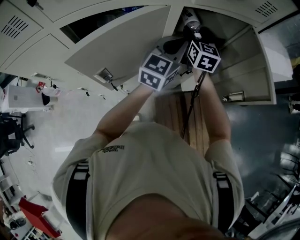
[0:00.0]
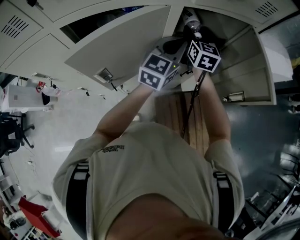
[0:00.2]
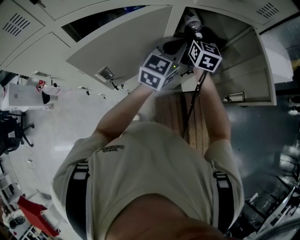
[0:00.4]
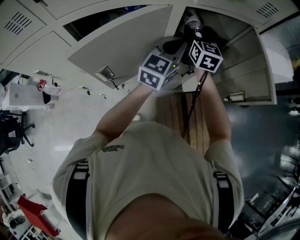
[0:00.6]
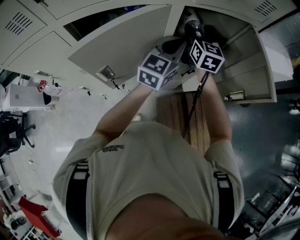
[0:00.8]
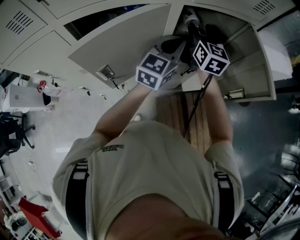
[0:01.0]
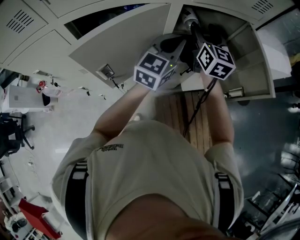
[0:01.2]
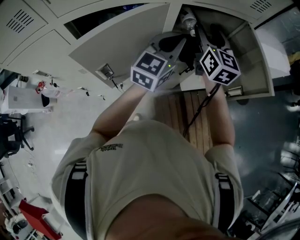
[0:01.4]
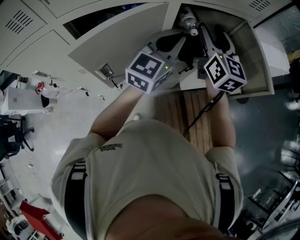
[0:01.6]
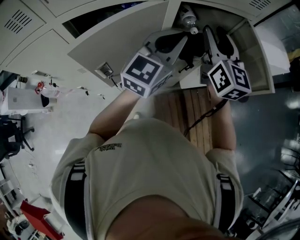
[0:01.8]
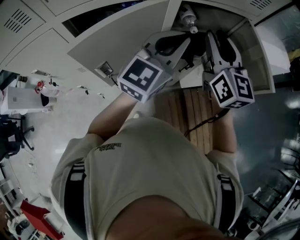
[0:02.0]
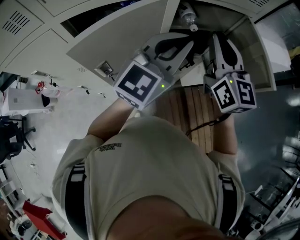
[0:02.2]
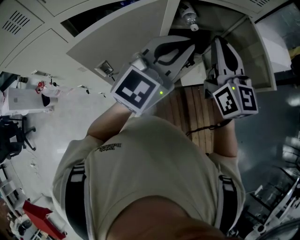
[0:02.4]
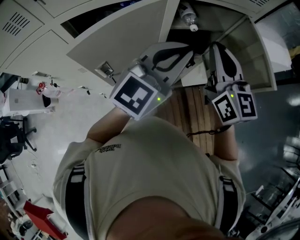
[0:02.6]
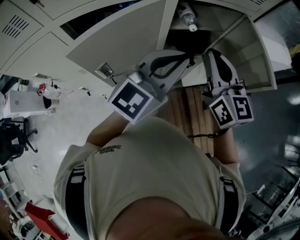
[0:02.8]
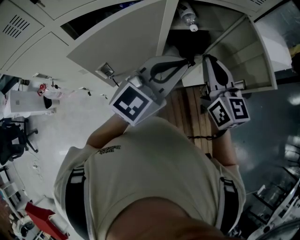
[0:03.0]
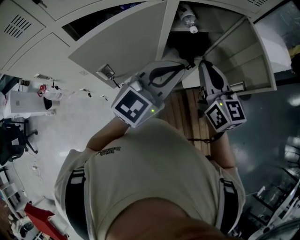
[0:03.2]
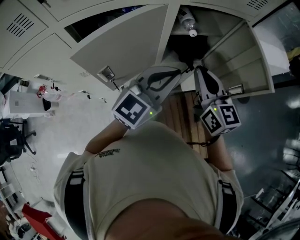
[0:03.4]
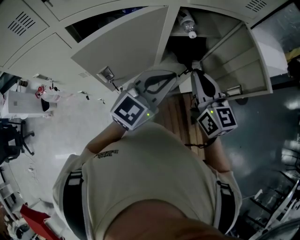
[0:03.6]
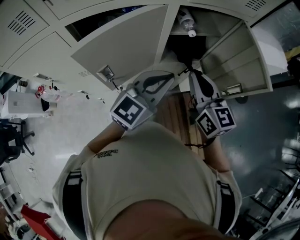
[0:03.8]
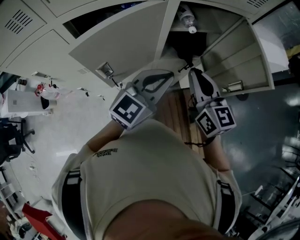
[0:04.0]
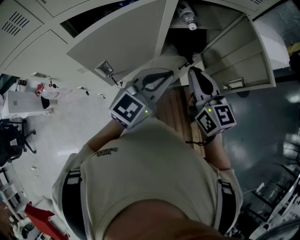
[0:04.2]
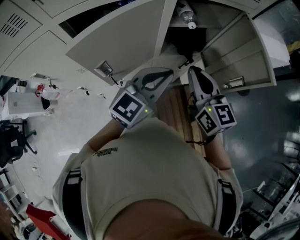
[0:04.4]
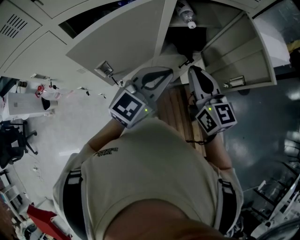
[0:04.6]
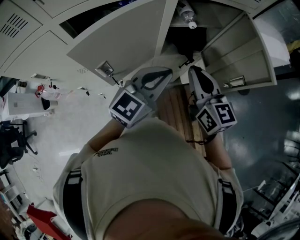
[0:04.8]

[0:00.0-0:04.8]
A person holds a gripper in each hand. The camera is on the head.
0:00.0 to 0:01.6: The left gripper shifts roughly 5 cm upward; the right gripper heads upward and backward, covering roughly 15 cm.
0:01.6 to 0:03.2: The right gripper heads backward and downward, covering roughly 15 cm, and closes its fingers. The left gripper heads backward, covering approximately 10 cm.
0:03.2 to 0:04.8: The left gripper moves downward, approximately 5 cm.

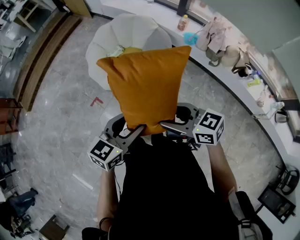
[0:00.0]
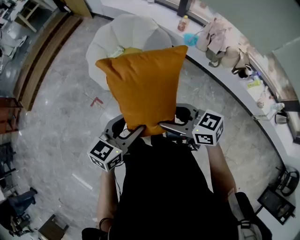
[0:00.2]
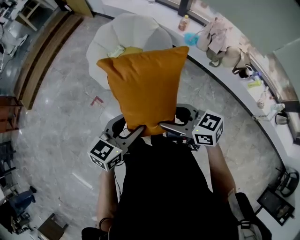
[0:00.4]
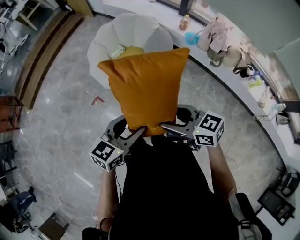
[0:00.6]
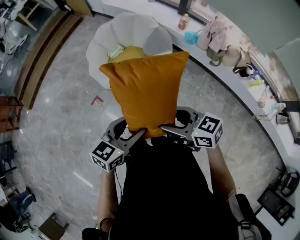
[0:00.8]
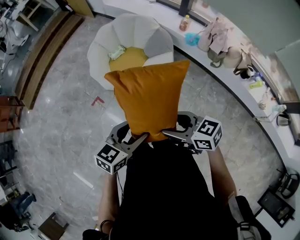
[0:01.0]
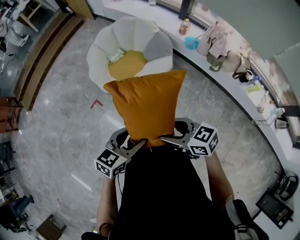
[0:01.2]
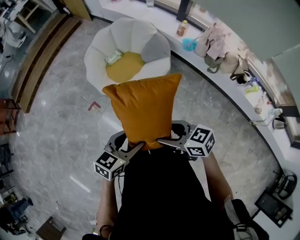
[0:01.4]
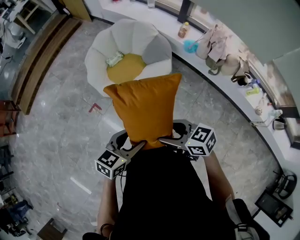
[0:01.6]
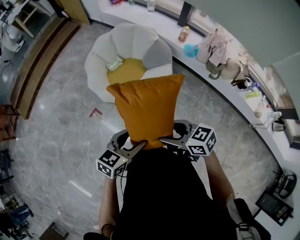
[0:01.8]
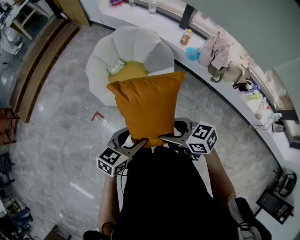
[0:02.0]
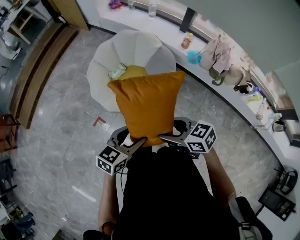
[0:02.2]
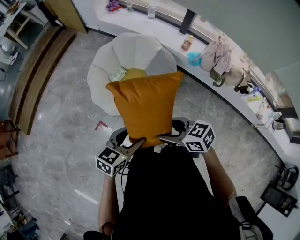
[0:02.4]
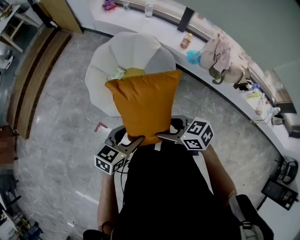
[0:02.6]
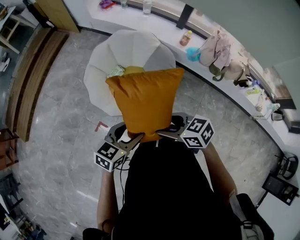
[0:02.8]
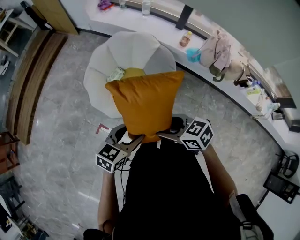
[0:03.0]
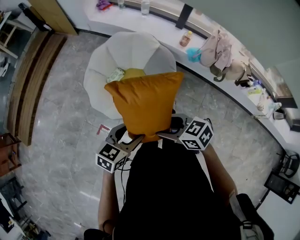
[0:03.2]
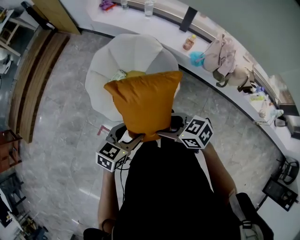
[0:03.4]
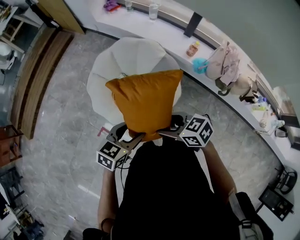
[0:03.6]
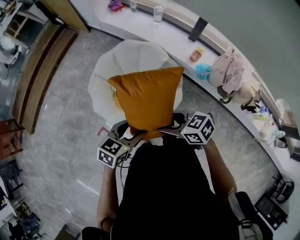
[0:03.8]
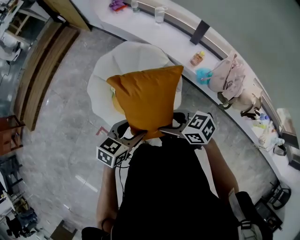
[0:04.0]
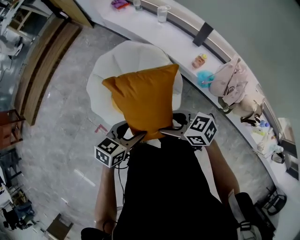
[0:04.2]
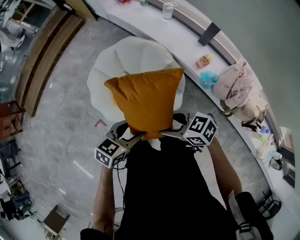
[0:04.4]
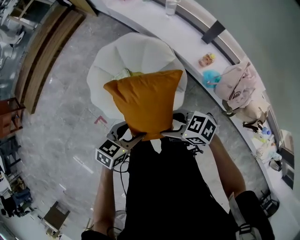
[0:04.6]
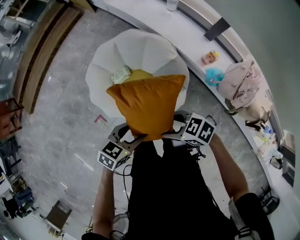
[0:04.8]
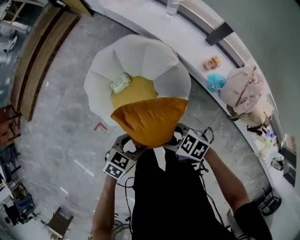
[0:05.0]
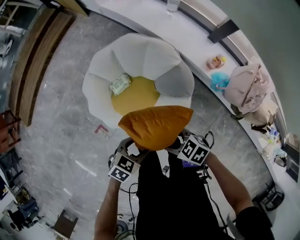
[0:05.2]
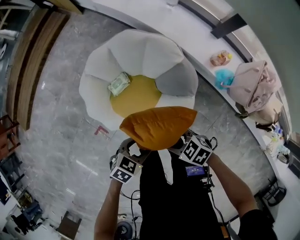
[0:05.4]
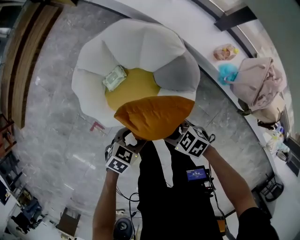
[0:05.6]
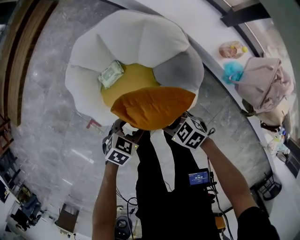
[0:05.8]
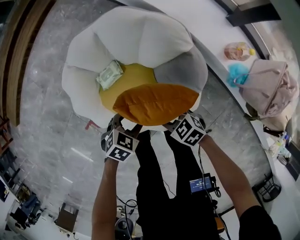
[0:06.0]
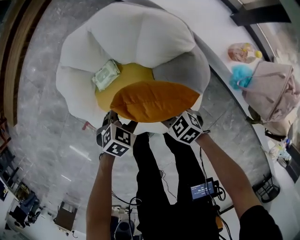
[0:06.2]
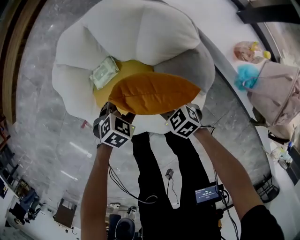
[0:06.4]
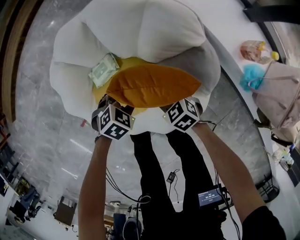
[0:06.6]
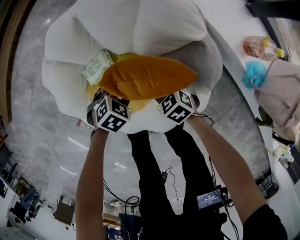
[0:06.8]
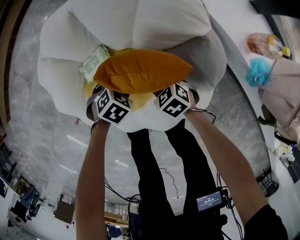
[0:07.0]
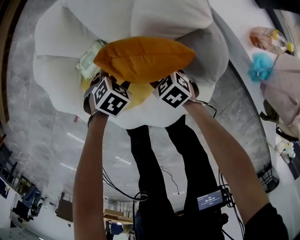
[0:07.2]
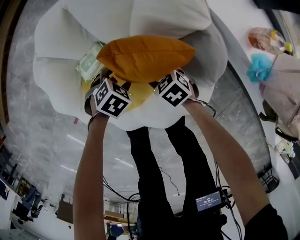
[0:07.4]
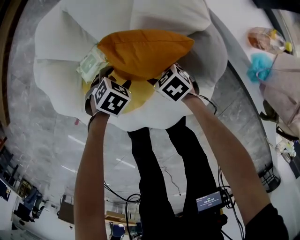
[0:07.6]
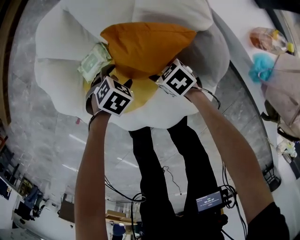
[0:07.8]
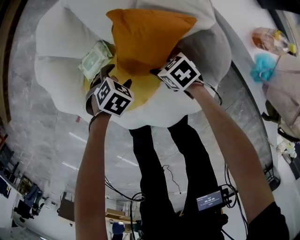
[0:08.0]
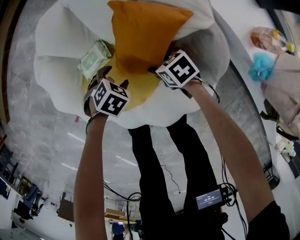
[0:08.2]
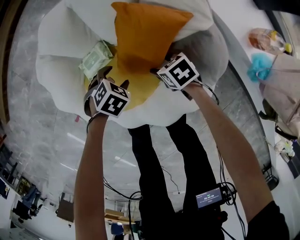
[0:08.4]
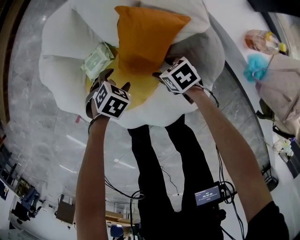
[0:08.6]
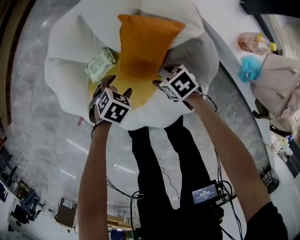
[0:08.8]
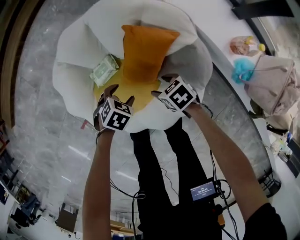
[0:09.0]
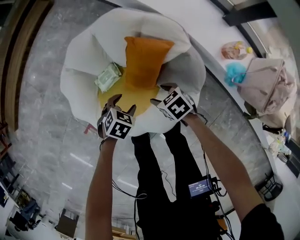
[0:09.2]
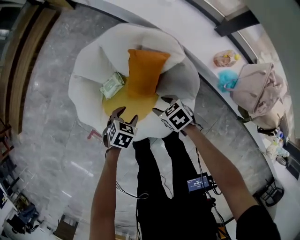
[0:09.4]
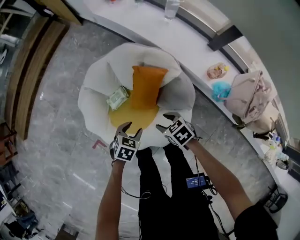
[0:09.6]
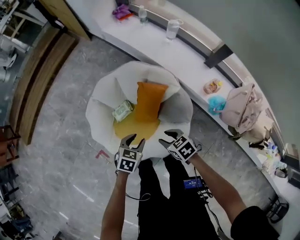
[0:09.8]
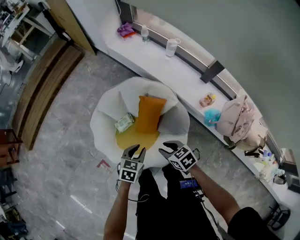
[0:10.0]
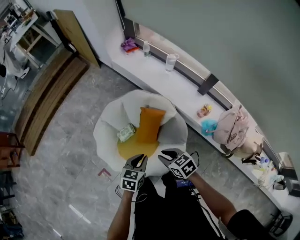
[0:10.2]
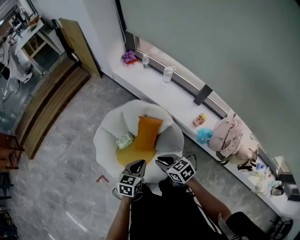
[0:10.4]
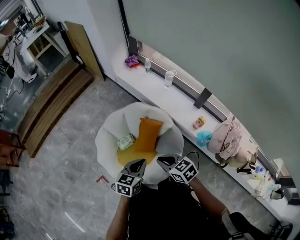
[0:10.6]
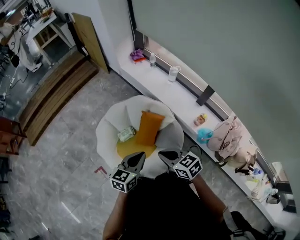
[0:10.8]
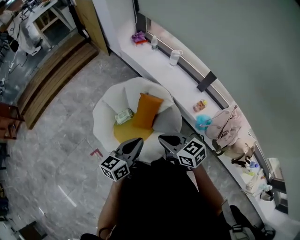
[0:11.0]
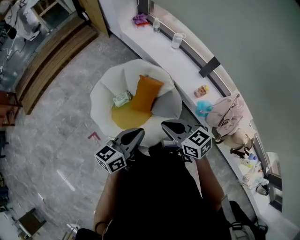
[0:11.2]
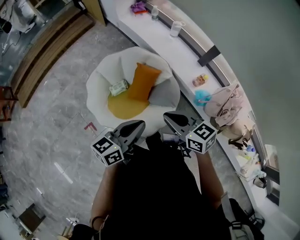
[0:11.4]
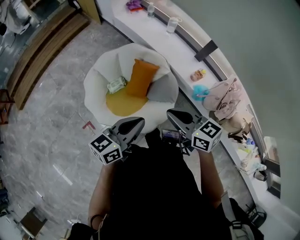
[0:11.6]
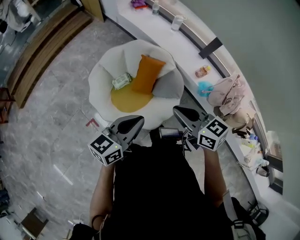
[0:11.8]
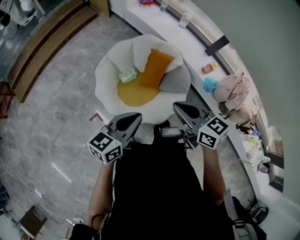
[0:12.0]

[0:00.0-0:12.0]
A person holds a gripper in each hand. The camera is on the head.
0:00.0 to 0:01.6: The grippers both shift downward by roughly 5 cm.
0:01.6 to 0:03.0: The left gripper changes place by approximately 25 cm. The right gripper moves approximately 25 cm.
0:03.0 to 0:04.4: The left gripper shifts by some 30 cm. Meanwhile the right gripper changes place by some 30 cm, and rotates some 20 degrees.
0:04.4 to 0:06.0: Both grippers move downward, roughly 35 cm. The left gripper changes its angle by roughly 30 degrees. Meanwhile the right gripper turns by roughly 20 degrees.
0:06.0 to 0:07.6: The two grippers go some 20 cm downward.
0:07.6 to 0:09.0: Both grippers travel together upward, roughly 10 cm.
0:09.0 to 0:10.4: The two grippers go some 40 cm upward. The right gripper changes its angle by approximately 30 degrees, and closes. Meanwhile the left gripper angles its fingers upward, by about 40 degrees, and closes its fingers.
0:10.4 to 0:12.0: The right gripper moves upward, backward and to the left, approximately 20 cm. The left gripper travels backward, upward and to the left by about 20 cm, and changes its angle by approximately 20 degrees.

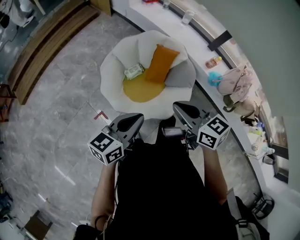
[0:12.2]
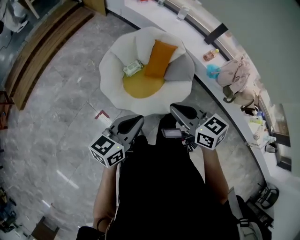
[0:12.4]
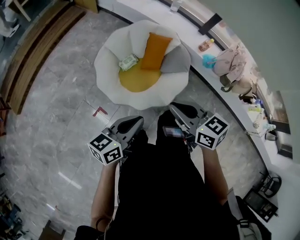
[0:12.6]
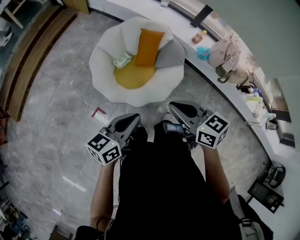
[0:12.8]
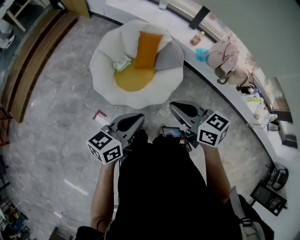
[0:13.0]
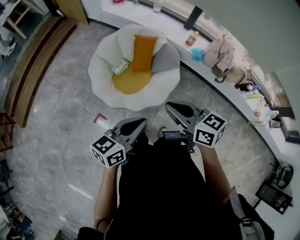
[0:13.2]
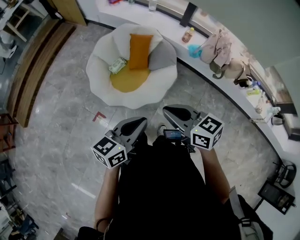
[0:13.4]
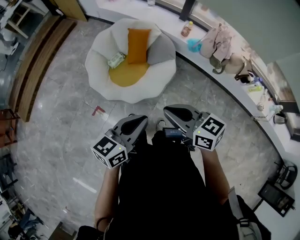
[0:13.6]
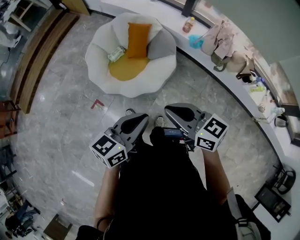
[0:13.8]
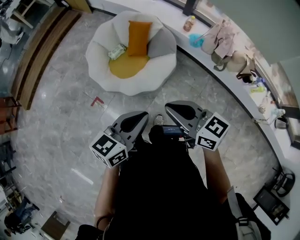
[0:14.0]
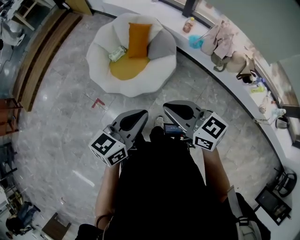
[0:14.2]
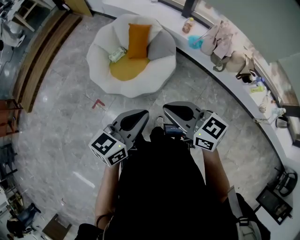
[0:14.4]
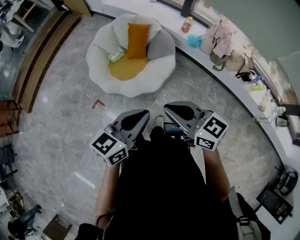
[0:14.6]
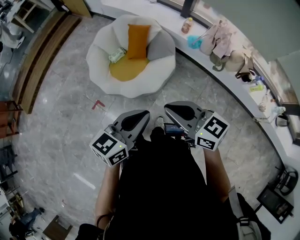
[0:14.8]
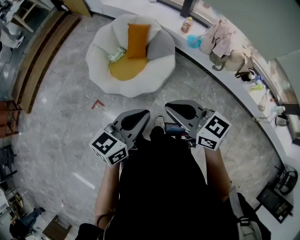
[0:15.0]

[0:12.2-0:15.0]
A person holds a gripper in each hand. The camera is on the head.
0:12.2 to 0:13.6: Both grippers move backward and to the right, approximately 25 cm.
0:13.6 to 0:15.0: The left gripper travels to the right by approximately 5 cm, while the right gripper moves about 5 cm.

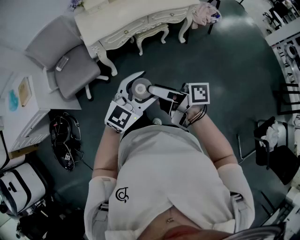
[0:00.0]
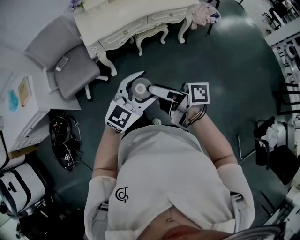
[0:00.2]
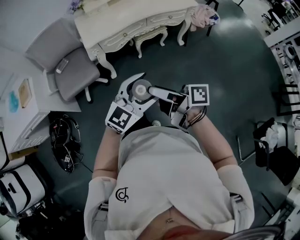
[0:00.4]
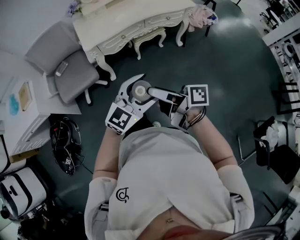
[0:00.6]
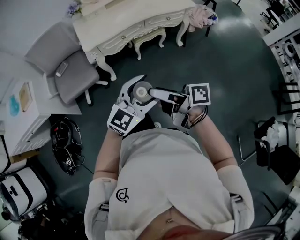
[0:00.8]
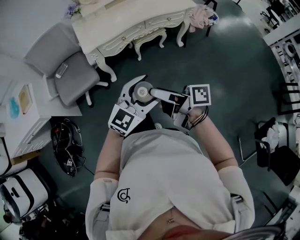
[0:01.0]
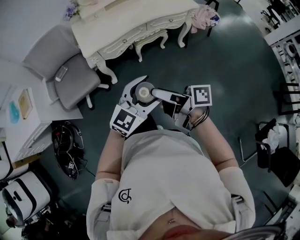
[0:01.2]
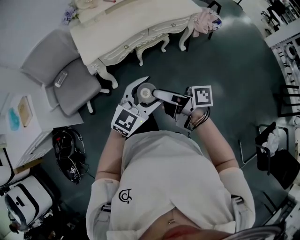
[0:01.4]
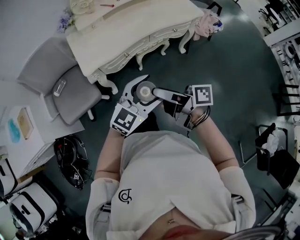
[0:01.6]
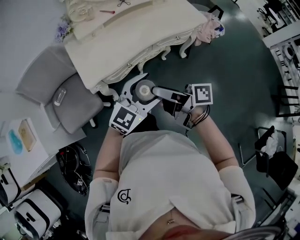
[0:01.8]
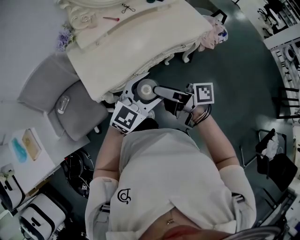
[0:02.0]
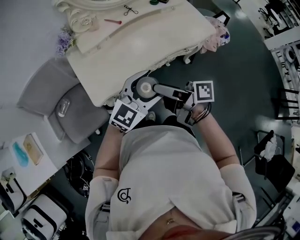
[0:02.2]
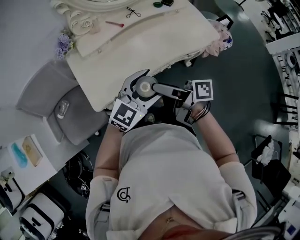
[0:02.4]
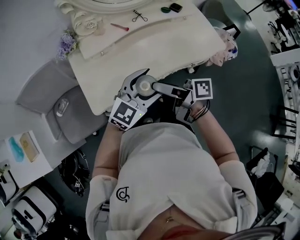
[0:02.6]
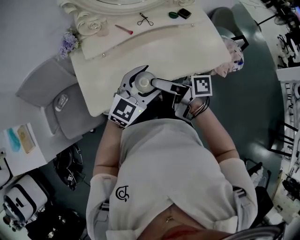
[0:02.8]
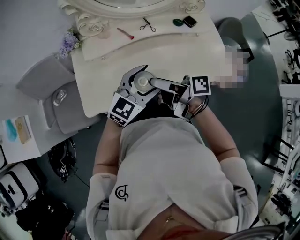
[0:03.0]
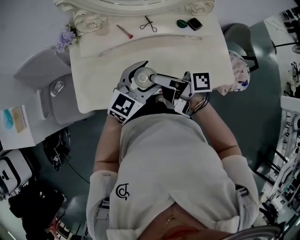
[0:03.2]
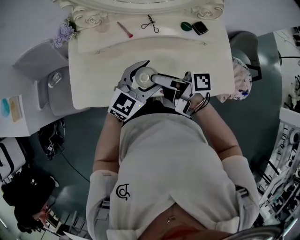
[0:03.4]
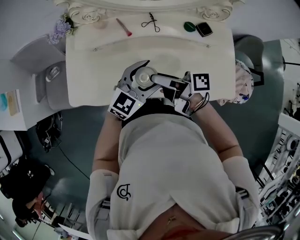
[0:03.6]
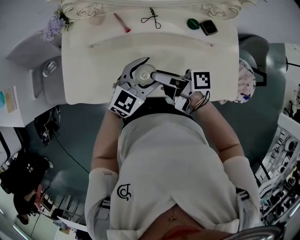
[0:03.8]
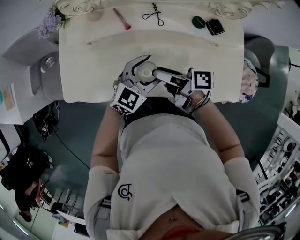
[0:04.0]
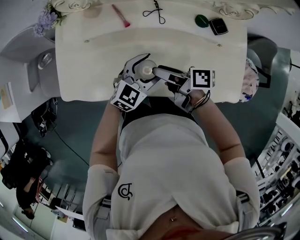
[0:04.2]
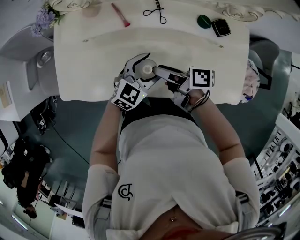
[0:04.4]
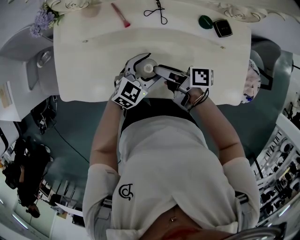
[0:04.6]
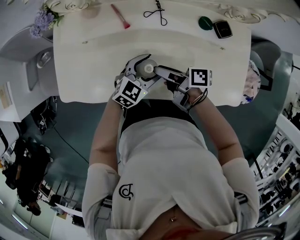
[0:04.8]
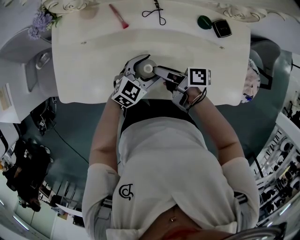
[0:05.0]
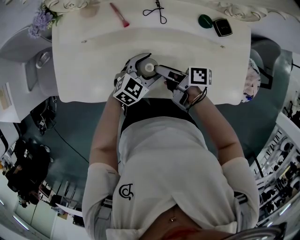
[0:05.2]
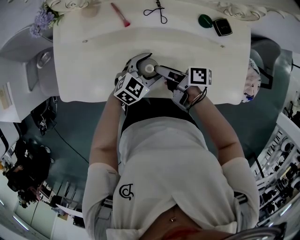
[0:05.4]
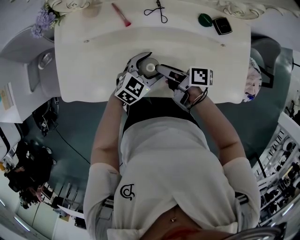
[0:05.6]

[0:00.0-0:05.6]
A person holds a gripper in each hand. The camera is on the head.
0:00.0 to 0:01.4: Both grippers move forward, approximately 10 cm.
0:01.4 to 0:02.8: Both grippers are carried forward, about 40 cm.
0:02.8 to 0:04.2: Both grippers travel together downward, forward and to the right, approximately 25 cm. The right gripper rotates about 30 degrees. The left gripper changes its angle by about 30 degrees.
0:04.2 to 0:05.6: The grippers both shift downward by about 5 cm.
